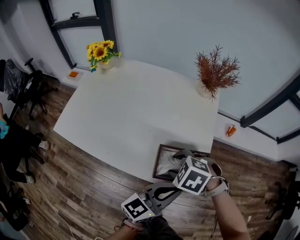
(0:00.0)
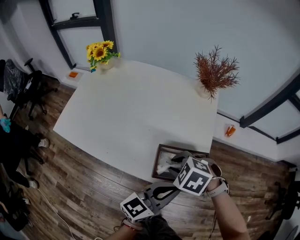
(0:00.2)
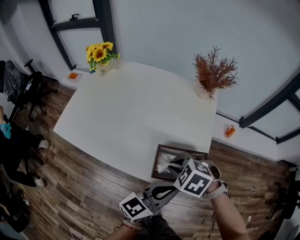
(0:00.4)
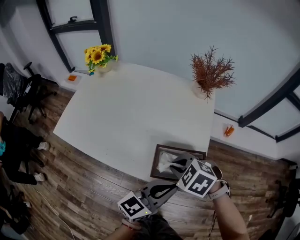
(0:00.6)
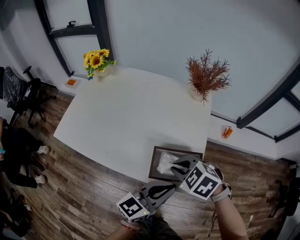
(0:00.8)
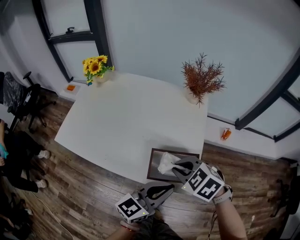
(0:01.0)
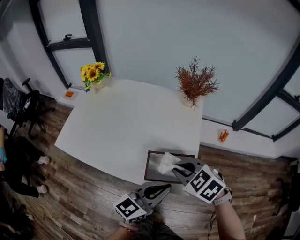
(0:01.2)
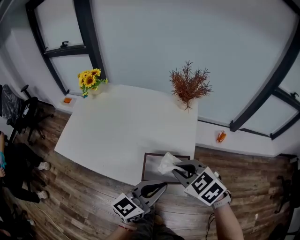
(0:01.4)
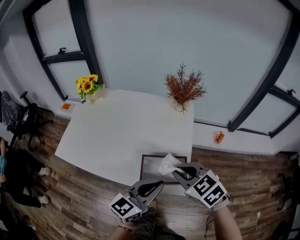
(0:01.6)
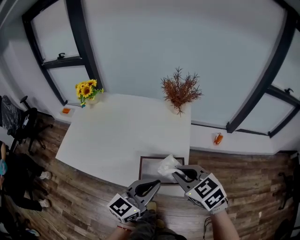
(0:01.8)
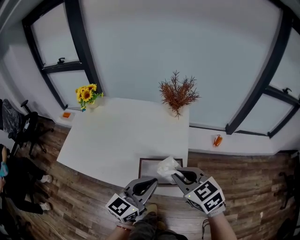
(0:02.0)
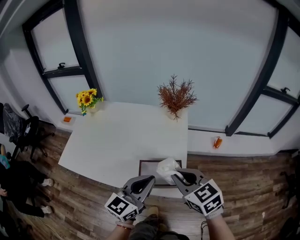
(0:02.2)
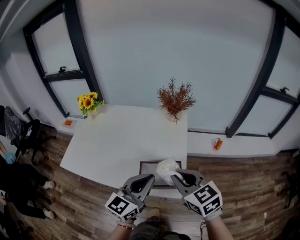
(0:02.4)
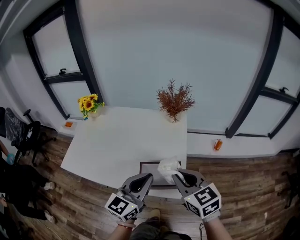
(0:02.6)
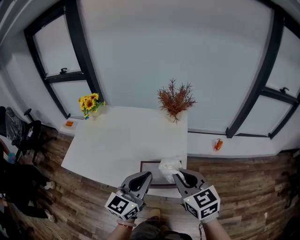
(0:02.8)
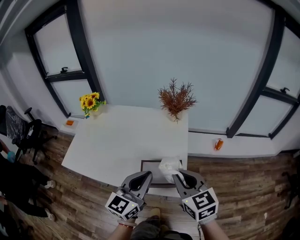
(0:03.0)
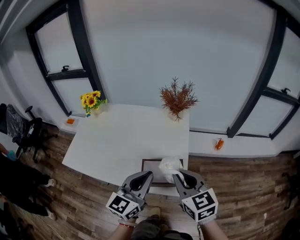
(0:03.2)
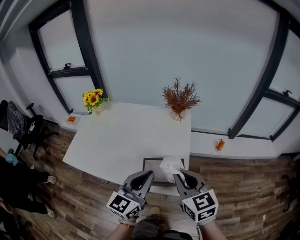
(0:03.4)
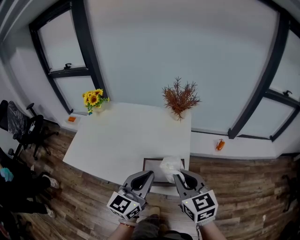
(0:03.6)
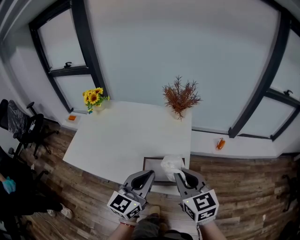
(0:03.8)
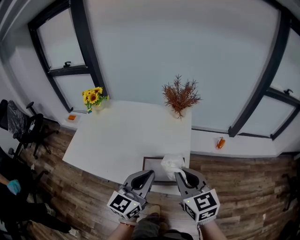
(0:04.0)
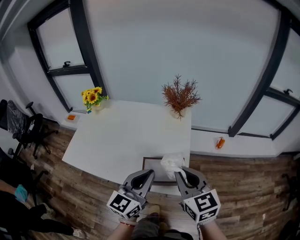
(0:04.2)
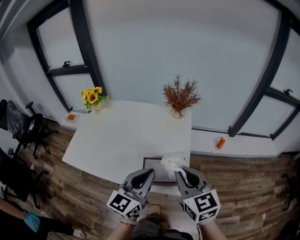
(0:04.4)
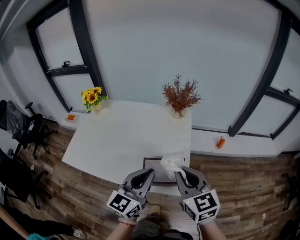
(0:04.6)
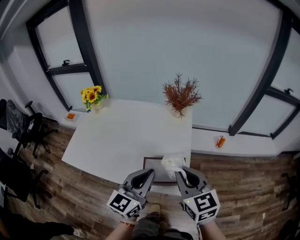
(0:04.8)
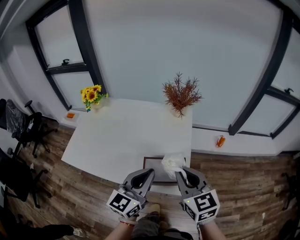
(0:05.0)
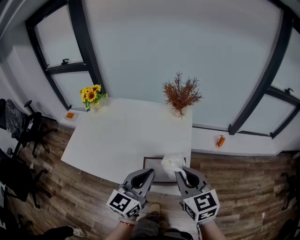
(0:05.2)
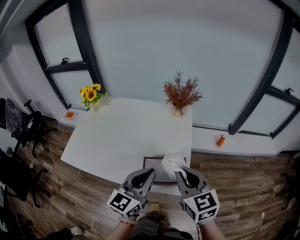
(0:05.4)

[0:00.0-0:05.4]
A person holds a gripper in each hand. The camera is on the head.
0:00.0 to 0:01.4: The right gripper travels upward and to the right by some 10 cm, changes its angle by about 30 degrees, and closes.
0:01.4 to 0:02.8: Both grippers move upward, approximately 5 cm. The right gripper changes its angle by roughly 40 degrees.
0:02.8 to 0:04.0: The two grippers keep their place.
0:04.0 to 0:05.4: The grippers stay close to where they were, moving slightly.

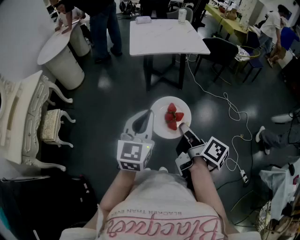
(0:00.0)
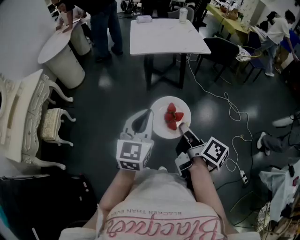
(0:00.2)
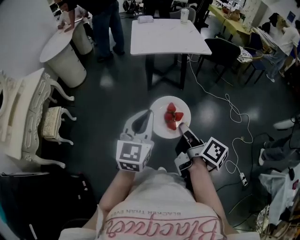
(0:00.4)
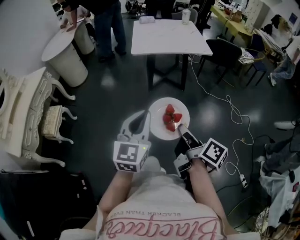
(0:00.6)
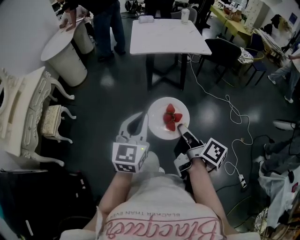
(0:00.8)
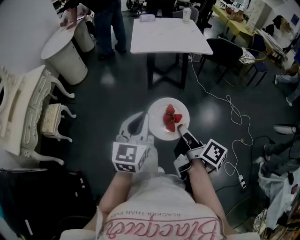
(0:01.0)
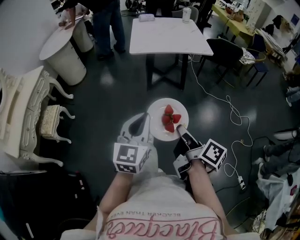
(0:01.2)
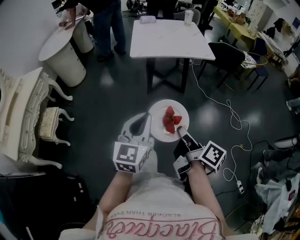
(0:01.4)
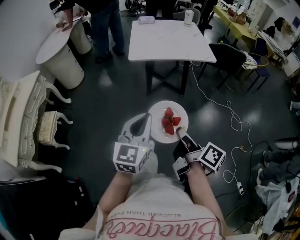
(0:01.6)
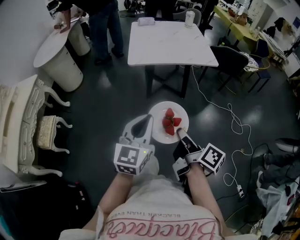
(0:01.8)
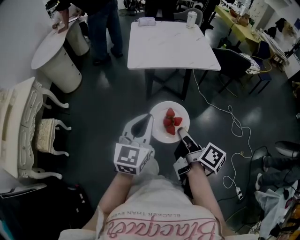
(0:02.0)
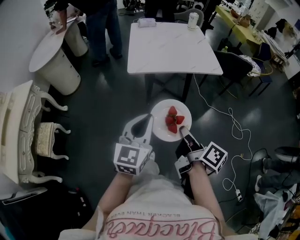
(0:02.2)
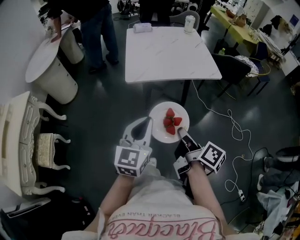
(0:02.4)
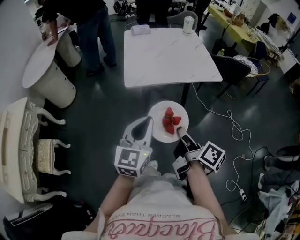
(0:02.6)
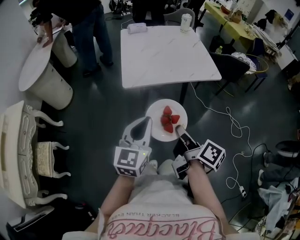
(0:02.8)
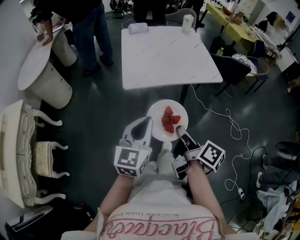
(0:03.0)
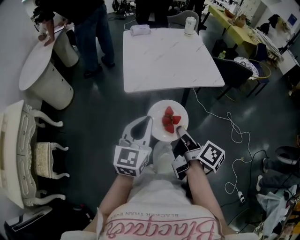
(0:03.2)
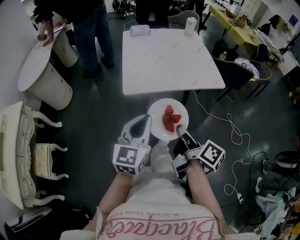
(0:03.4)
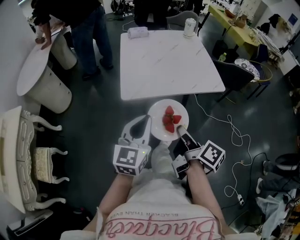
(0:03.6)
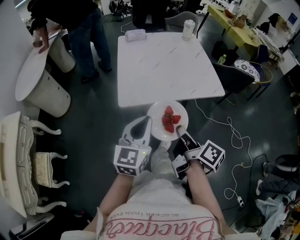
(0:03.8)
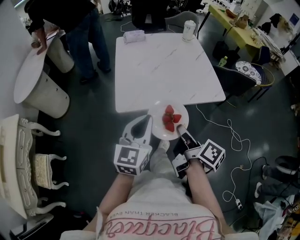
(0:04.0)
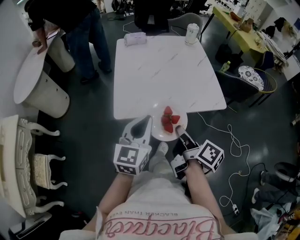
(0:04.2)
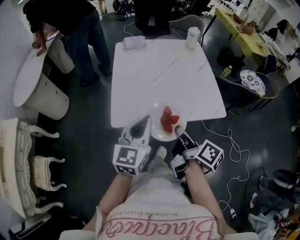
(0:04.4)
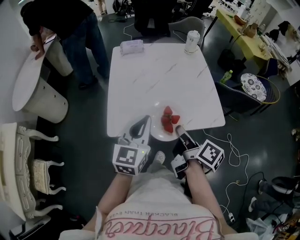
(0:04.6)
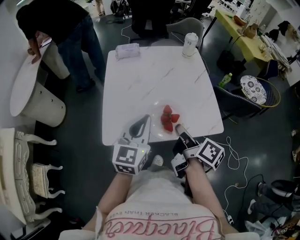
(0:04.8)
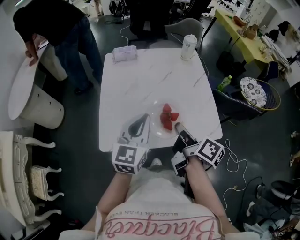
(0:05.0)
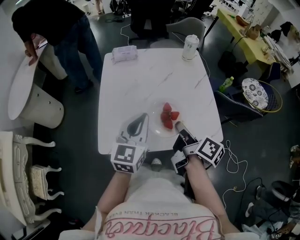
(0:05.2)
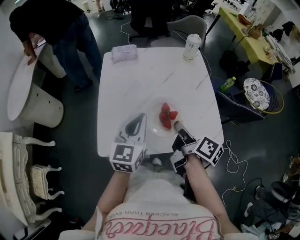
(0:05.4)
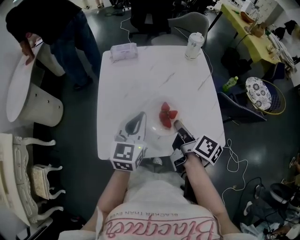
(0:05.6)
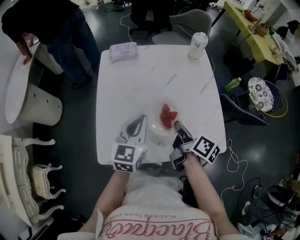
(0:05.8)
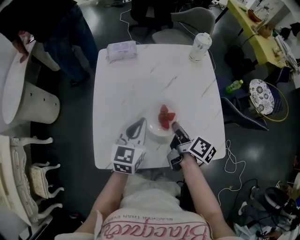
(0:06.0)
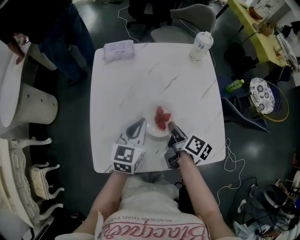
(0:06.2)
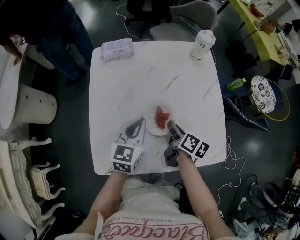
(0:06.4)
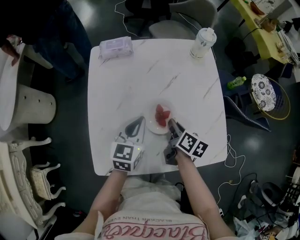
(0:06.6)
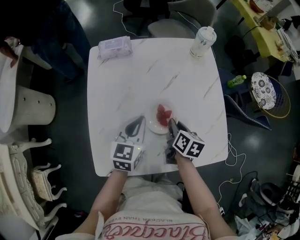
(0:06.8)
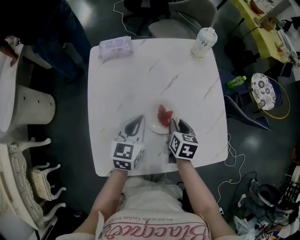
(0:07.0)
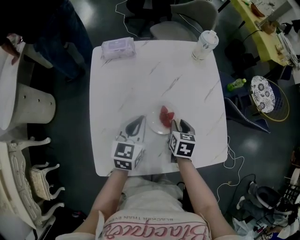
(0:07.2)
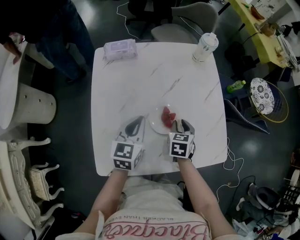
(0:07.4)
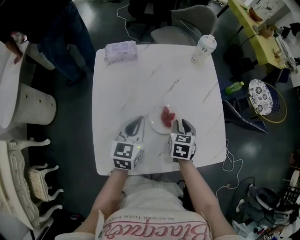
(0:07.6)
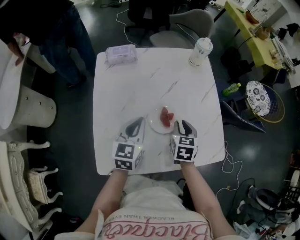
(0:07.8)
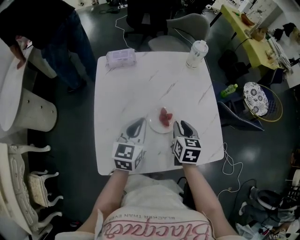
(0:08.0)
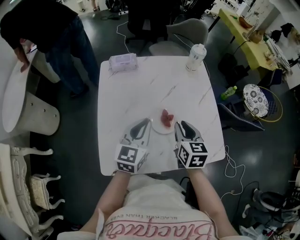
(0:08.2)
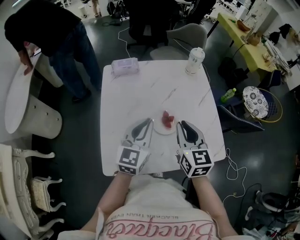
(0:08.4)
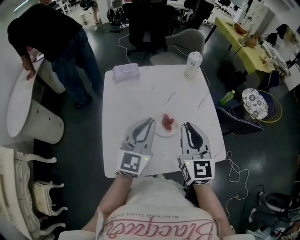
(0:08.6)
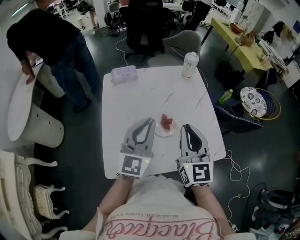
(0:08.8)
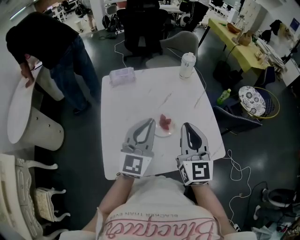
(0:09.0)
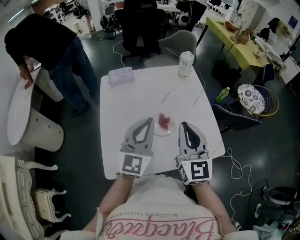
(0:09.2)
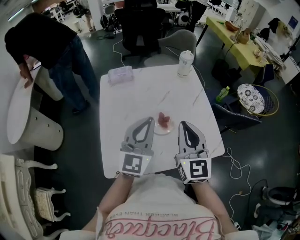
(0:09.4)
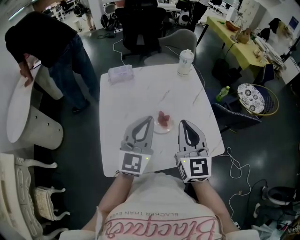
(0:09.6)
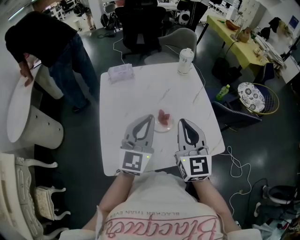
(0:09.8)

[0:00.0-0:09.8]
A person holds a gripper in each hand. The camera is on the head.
0:00.0 to 0:01.4: Both grippers travel together forward, about 5 cm.
0:01.4 to 0:02.8: The grippers both shift forward by roughly 30 cm.
0:02.8 to 0:04.2: The two grippers go roughly 25 cm forward.
0:04.2 to 0:05.6: The two grippers go roughly 30 cm forward.
0:05.6 to 0:07.0: The right gripper moves downward and forward, approximately 20 cm, and rotates around the line of its fingers by roughly 40 degrees, counterclockwise from behind. The left gripper heads forward and downward, covering about 15 cm.
0:07.0 to 0:08.4: The left gripper is displaced upward and backward by some 15 cm; the right gripper moves upward, about 20 cm, and turns by some 30 degrees.
0:08.4 to 0:09.8: The left gripper moves upward, about 5 cm, while the right gripper heads upward and backward, covering approximately 10 cm.

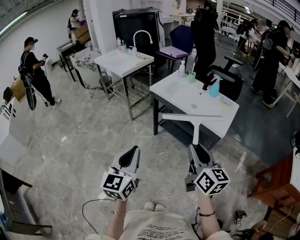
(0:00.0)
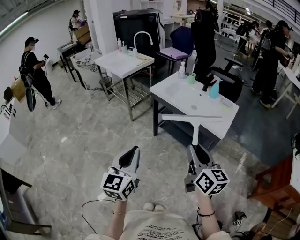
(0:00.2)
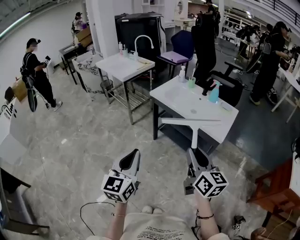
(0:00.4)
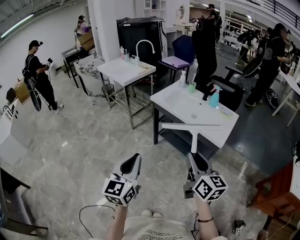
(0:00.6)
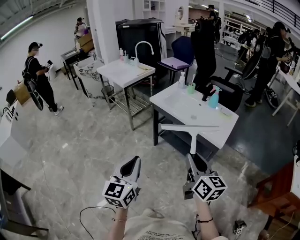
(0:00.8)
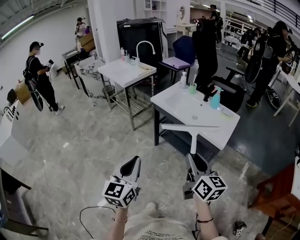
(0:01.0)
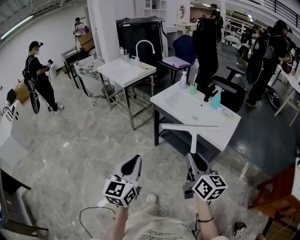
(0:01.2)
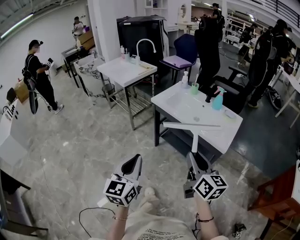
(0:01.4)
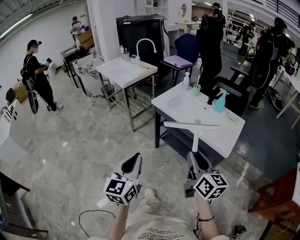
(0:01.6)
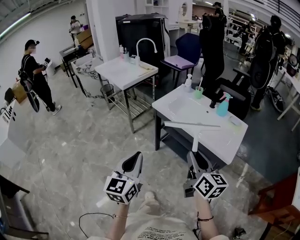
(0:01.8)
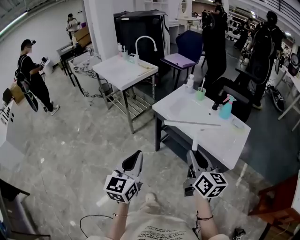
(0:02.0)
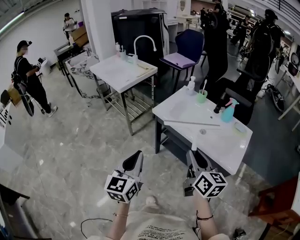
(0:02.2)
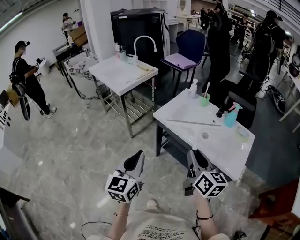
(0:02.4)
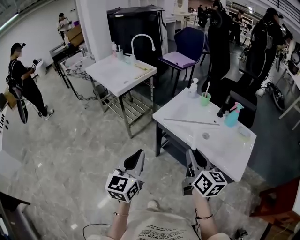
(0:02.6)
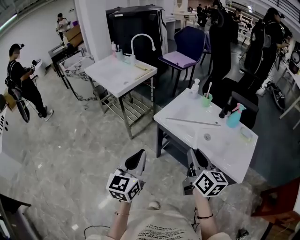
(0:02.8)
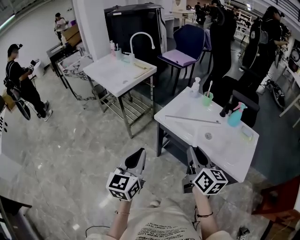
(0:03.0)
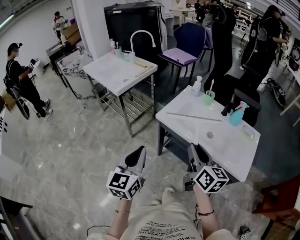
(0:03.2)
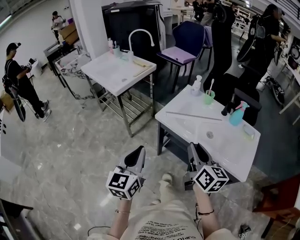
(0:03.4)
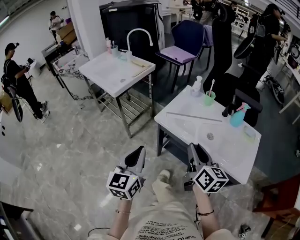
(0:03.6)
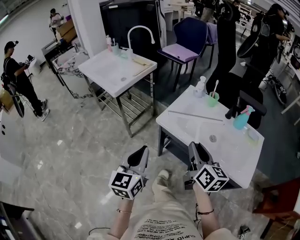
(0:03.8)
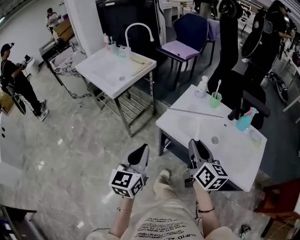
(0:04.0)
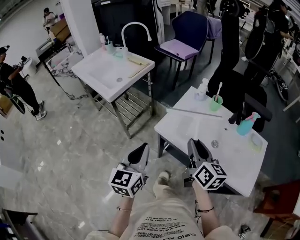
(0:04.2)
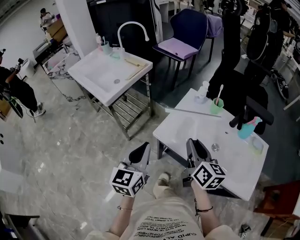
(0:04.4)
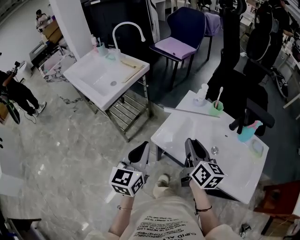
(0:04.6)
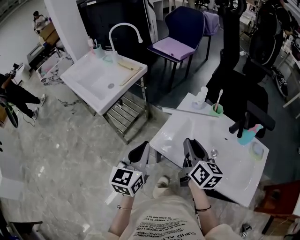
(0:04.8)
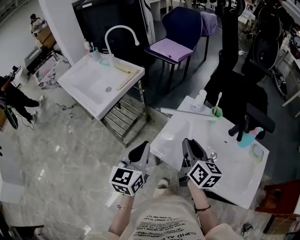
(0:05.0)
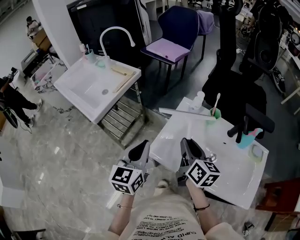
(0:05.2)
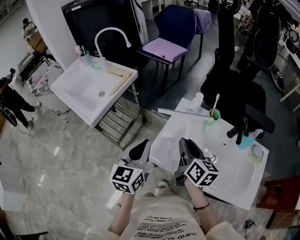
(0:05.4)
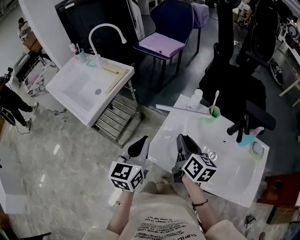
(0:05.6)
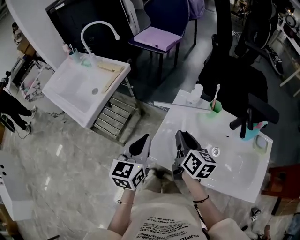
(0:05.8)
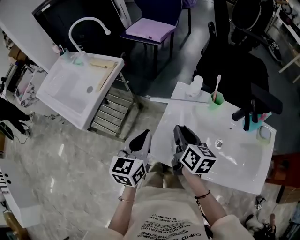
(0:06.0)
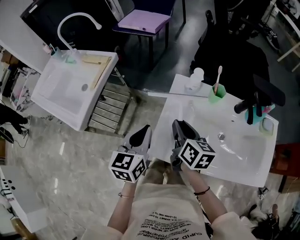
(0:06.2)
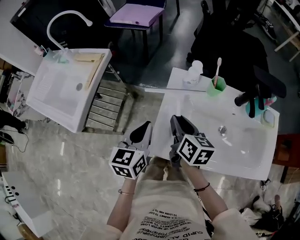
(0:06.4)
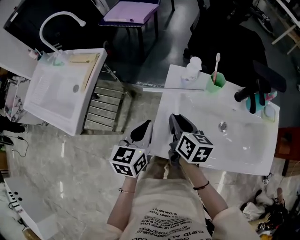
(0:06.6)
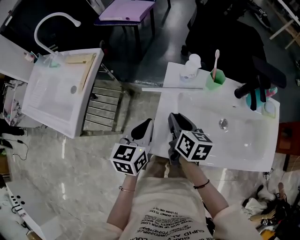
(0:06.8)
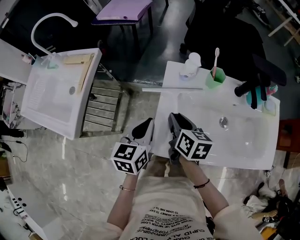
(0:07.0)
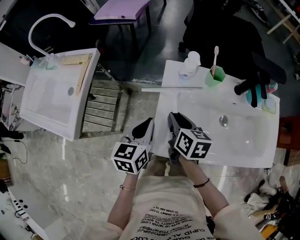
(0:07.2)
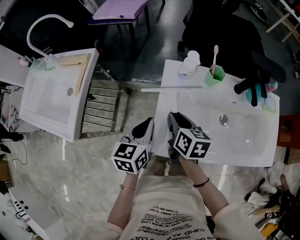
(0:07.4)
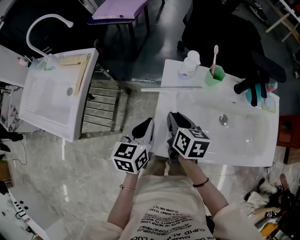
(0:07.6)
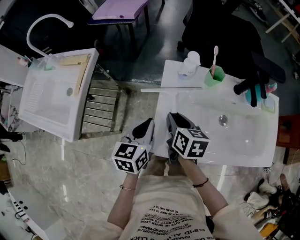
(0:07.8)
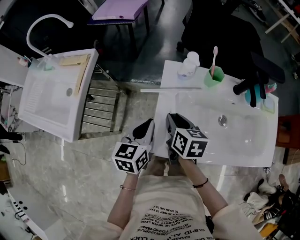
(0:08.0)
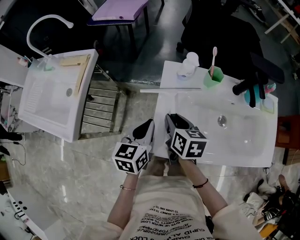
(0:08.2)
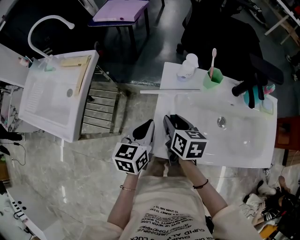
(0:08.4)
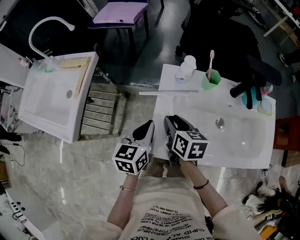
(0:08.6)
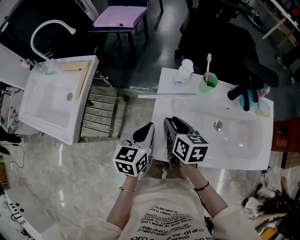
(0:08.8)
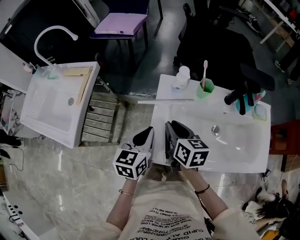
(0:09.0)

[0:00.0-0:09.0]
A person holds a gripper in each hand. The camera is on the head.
0:00.0 to 0:01.6: Both grippers move forward, approximately 10 cm.
0:01.6 to 0:03.0: Both grippers move forward, approximately 25 cm.
0:03.0 to 0:04.4: The two grippers go about 20 cm forward.
0:04.4 to 0:06.0: The left gripper heads forward, covering about 20 cm. The right gripper shifts about 15 cm forward and downward.
0:06.0 to 0:07.6: The two grippers go about 10 cm downward.
0:07.6 to 0:09.0: There are only small adjustments of the grippers.
